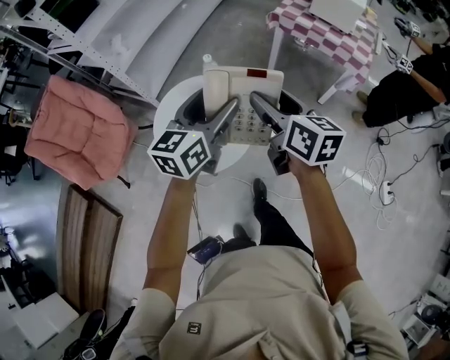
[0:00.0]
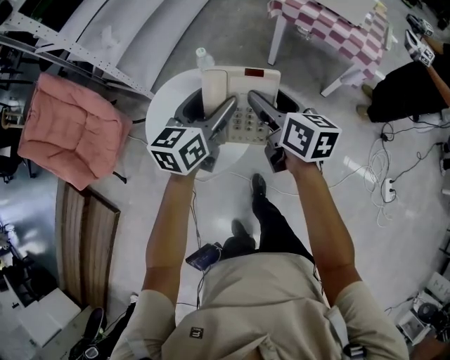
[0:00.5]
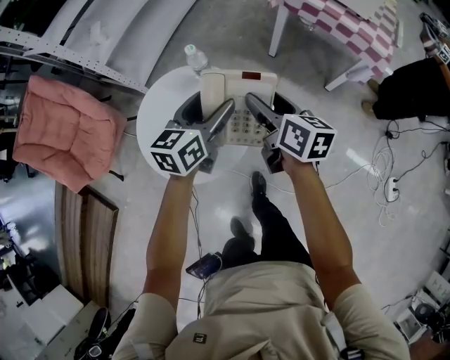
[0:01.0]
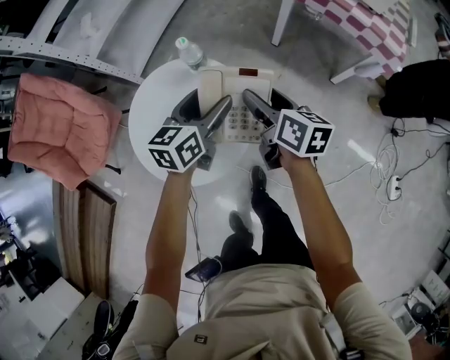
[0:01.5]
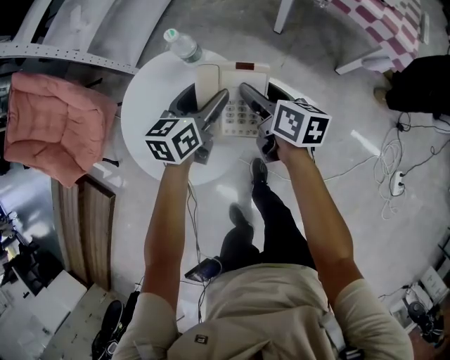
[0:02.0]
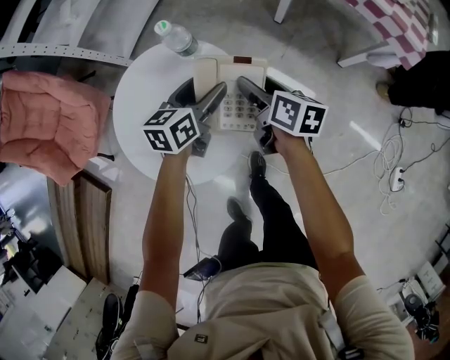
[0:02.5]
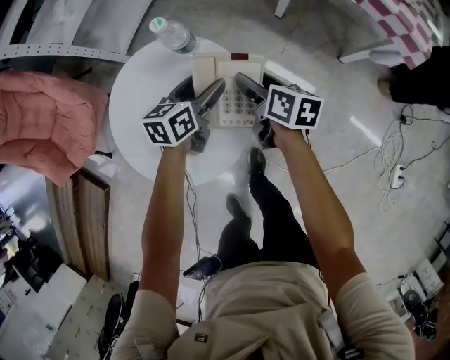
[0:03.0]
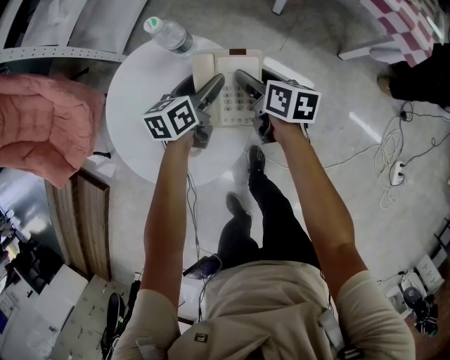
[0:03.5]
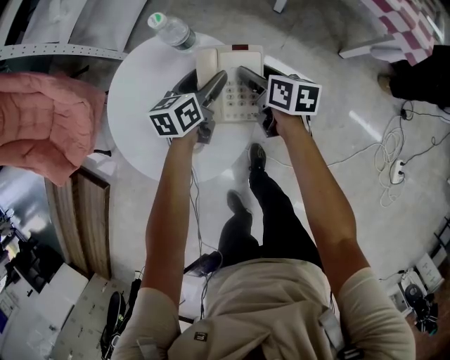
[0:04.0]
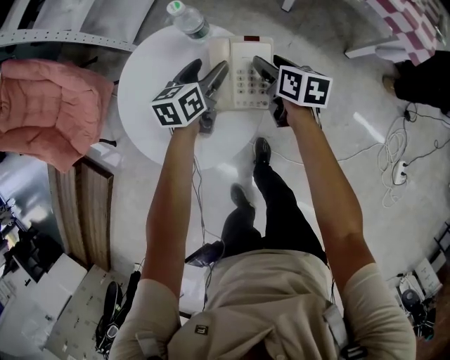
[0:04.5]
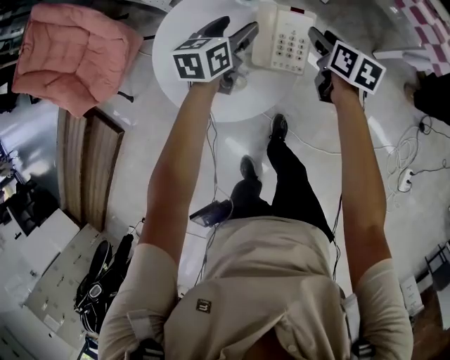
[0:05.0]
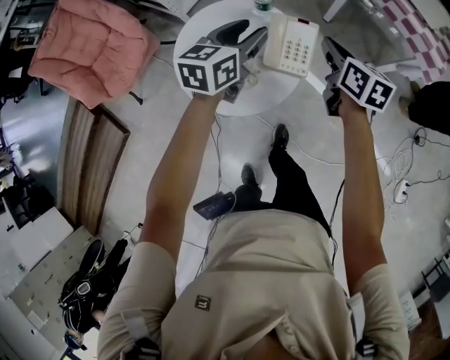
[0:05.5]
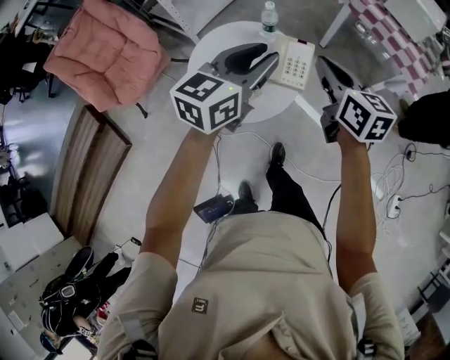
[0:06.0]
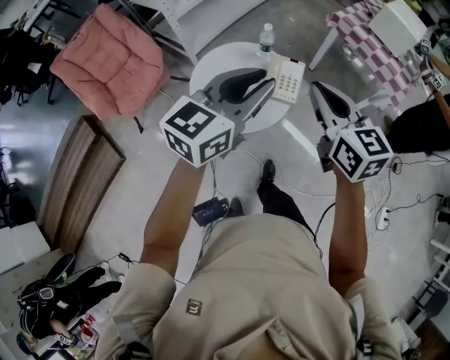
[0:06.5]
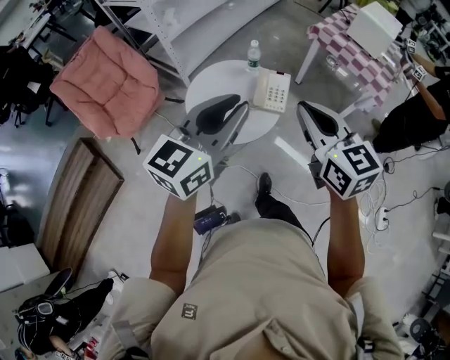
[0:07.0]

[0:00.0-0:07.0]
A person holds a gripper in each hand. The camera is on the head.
0:00.0 to 0:02.0: Both grippers travel together downward and forward, roughly 35 cm. The right gripper changes its angle by about 20 degrees; the left gripper rotates some 20 degrees.
0:02.0 to 0:03.5: The grippers both shift downward by roughly 10 cm.
0:03.5 to 0:05.0: The left gripper moves upward and to the left, approximately 15 cm, while the right gripper travels upward by roughly 10 cm.
0:05.0 to 0:07.0: Both grippers move upward and backward, approximately 50 cm. The right gripper swivels approximately 40 degrees, and closes up, while the left gripper points its fingers about 30 degrees further upward, and closes its fingers.

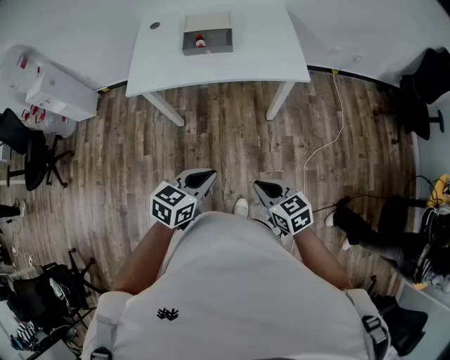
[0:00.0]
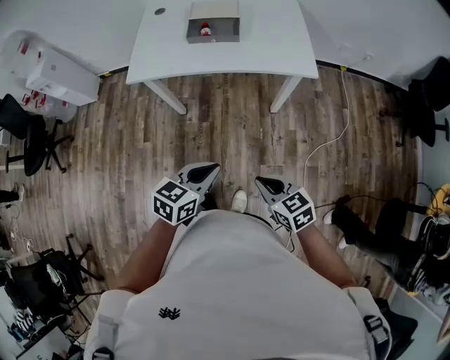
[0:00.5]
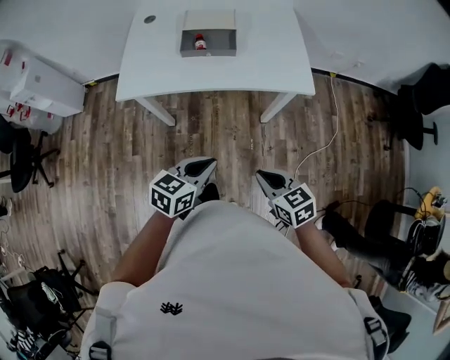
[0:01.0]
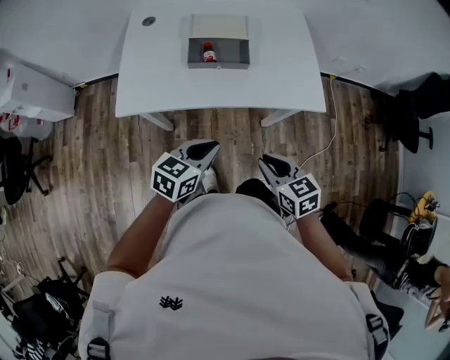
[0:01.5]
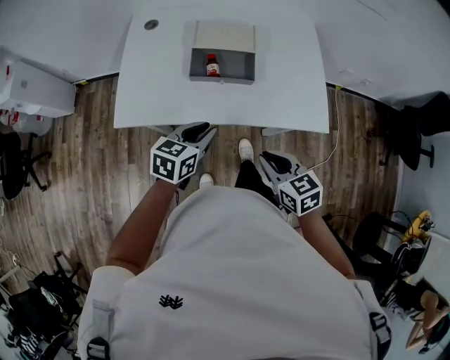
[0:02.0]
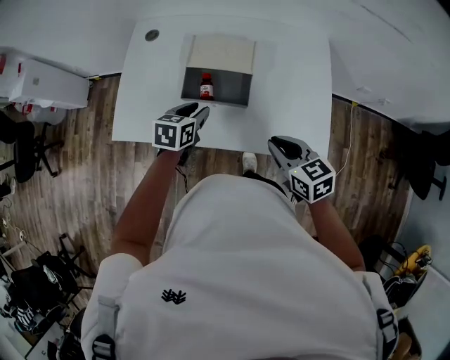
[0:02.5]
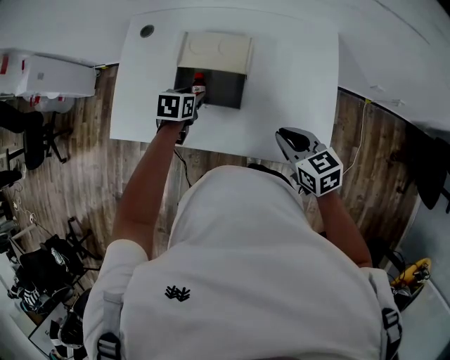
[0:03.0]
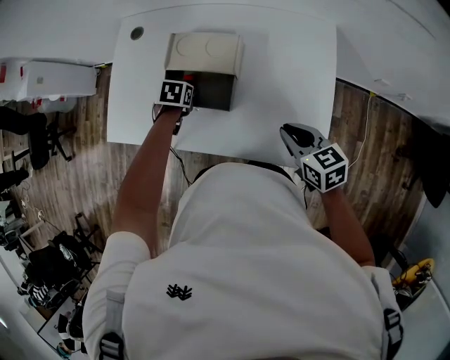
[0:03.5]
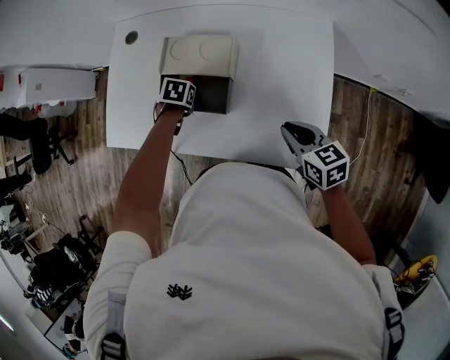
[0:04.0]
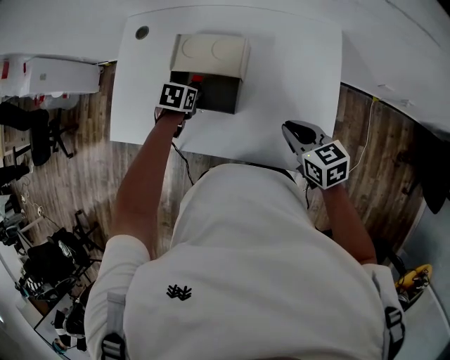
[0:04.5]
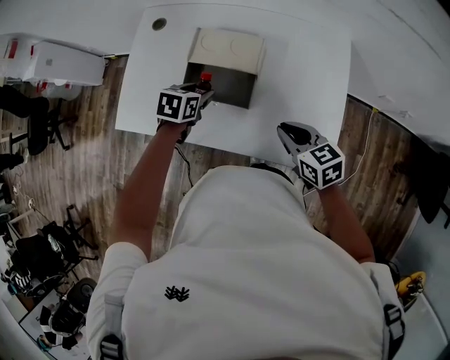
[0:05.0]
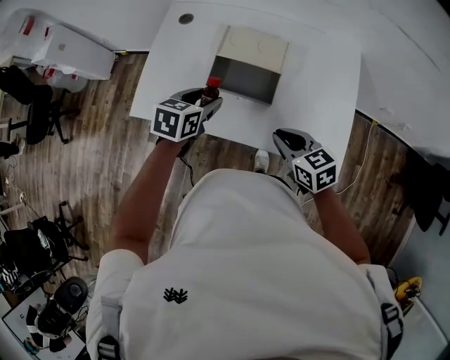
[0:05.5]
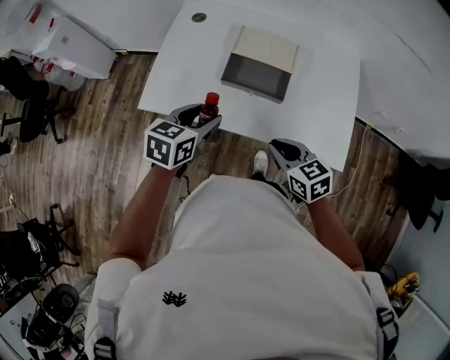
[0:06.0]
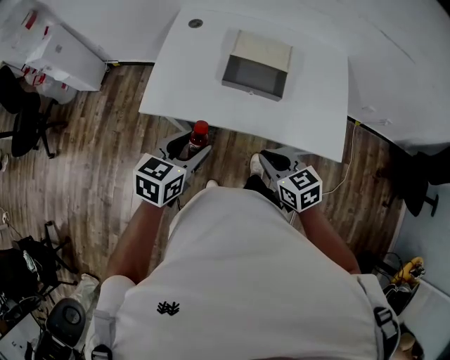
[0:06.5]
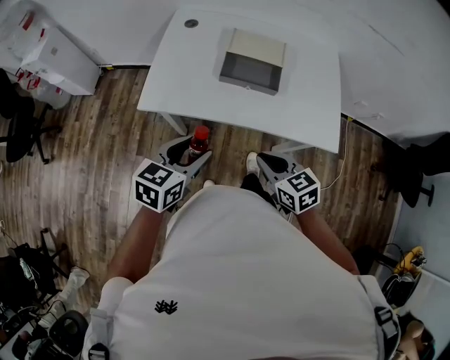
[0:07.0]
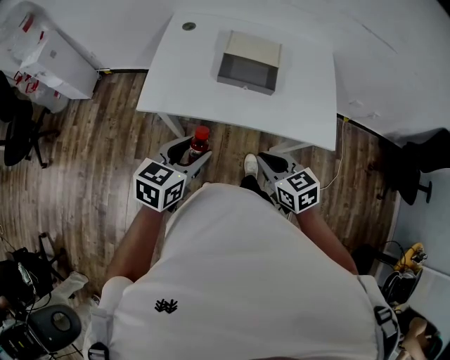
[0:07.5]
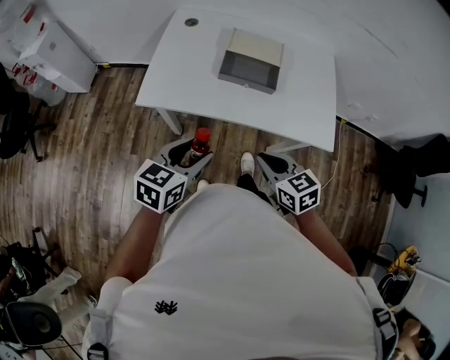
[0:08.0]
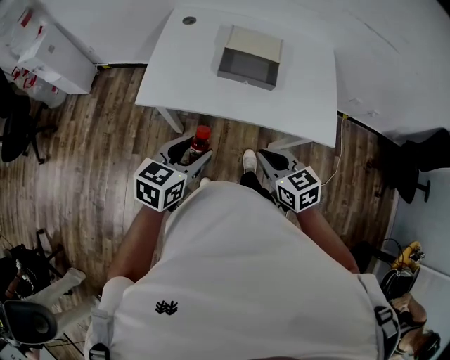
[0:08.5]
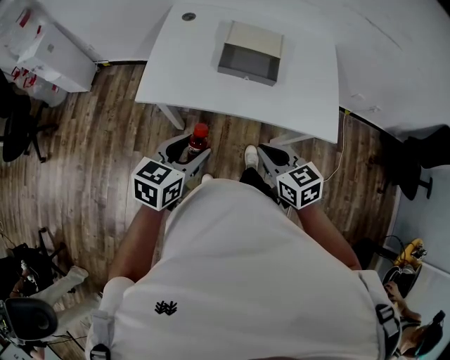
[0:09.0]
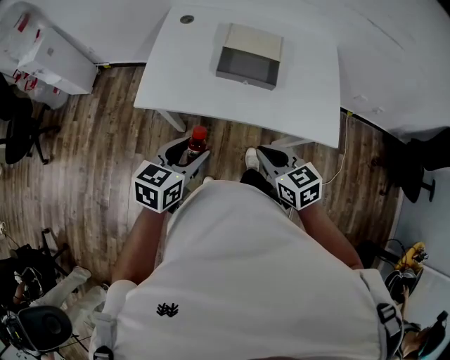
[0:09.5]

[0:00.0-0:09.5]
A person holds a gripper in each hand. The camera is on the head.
0:00.0 to 0:02.0: The grippers both shift forward by about 30 cm.
0:02.0 to 0:04.0: The left gripper shifts by approximately 30 cm, points its fingers approximately 50 degrees further downward, and opens its fingers; the right gripper shifts by approximately 25 cm.
0:04.0 to 0:05.5: The right gripper changes place by about 15 cm. Meanwhile the left gripper shifts roughly 15 cm upward, and angles its fingers upward, by roughly 40 degrees.
0:05.5 to 0:07.5: Both grippers move backward and to the left, roughly 20 cm.
0:07.5 to 0:09.5: The grippers stay close to where they were, moving slightly.

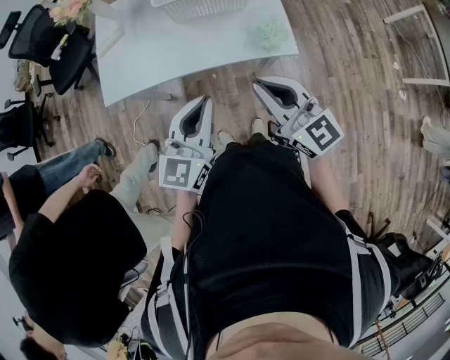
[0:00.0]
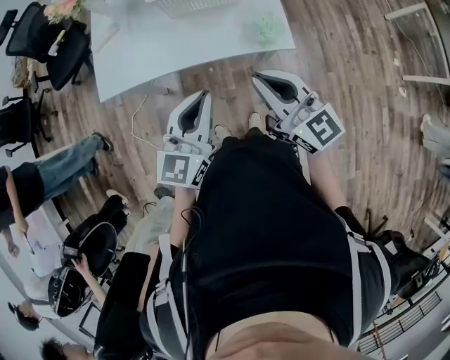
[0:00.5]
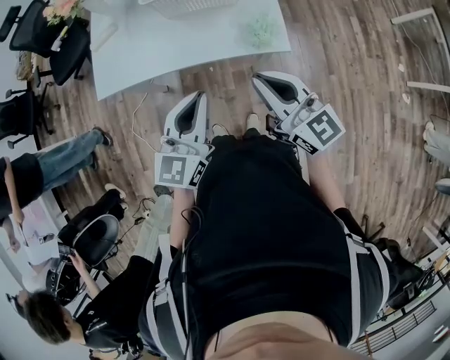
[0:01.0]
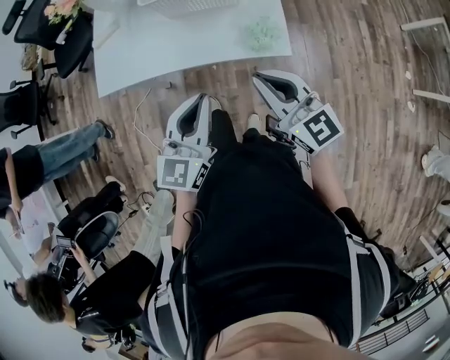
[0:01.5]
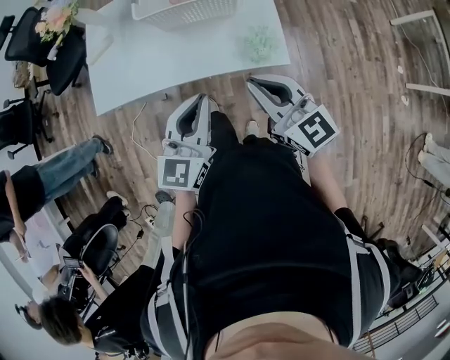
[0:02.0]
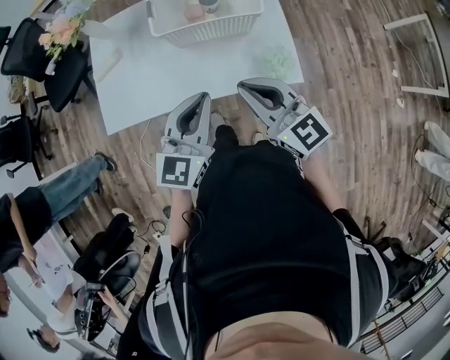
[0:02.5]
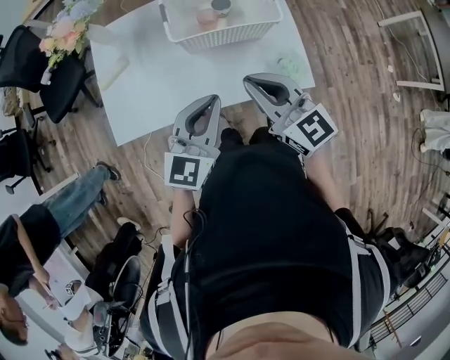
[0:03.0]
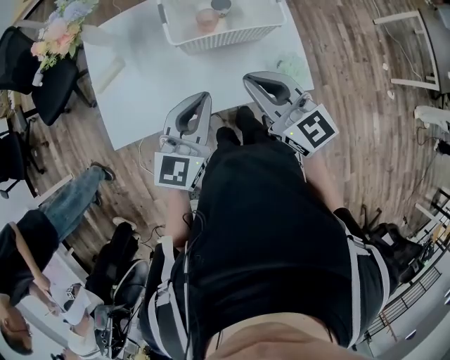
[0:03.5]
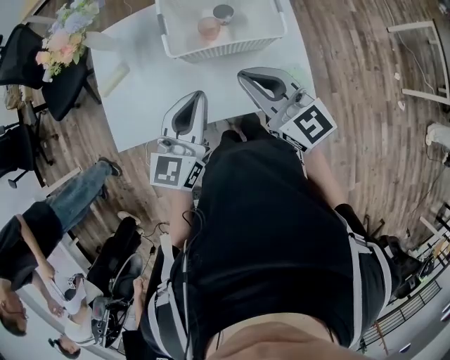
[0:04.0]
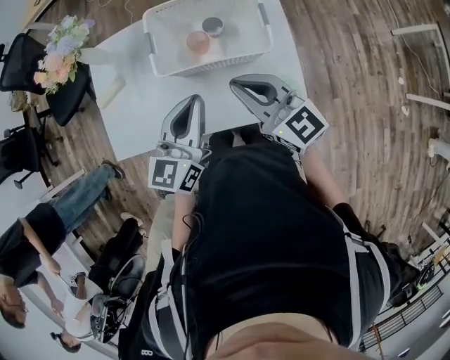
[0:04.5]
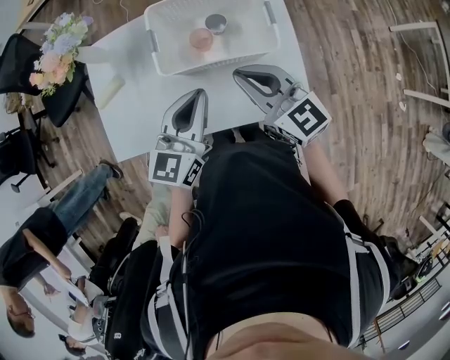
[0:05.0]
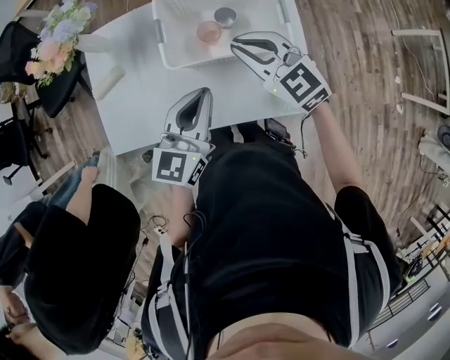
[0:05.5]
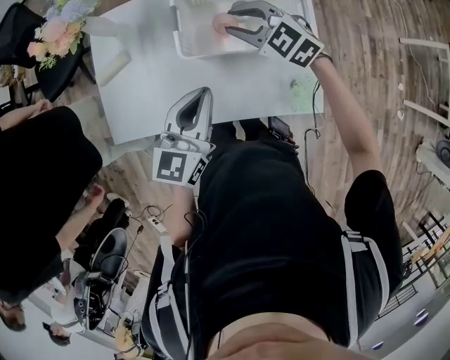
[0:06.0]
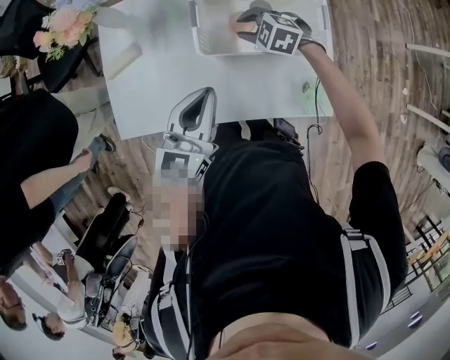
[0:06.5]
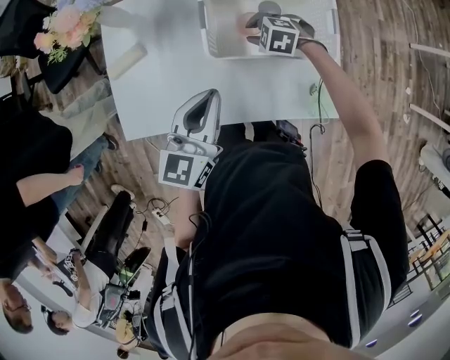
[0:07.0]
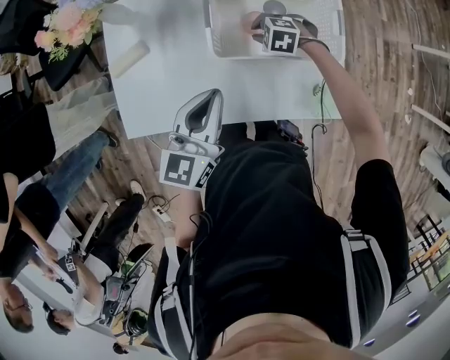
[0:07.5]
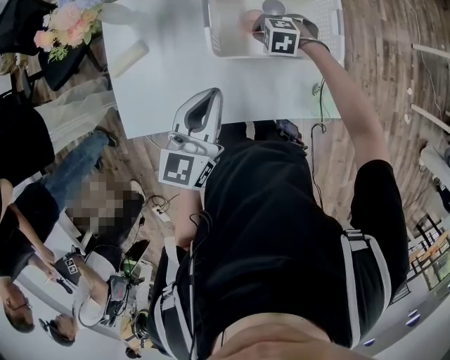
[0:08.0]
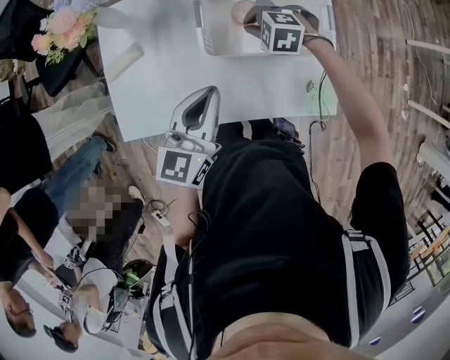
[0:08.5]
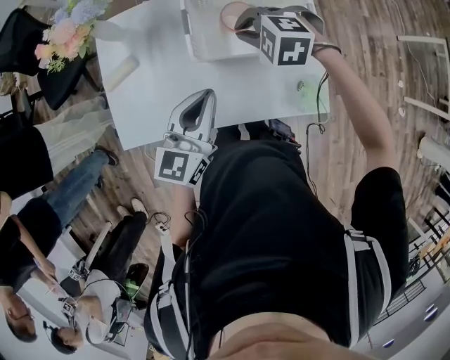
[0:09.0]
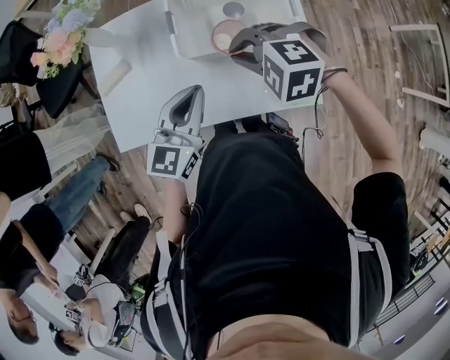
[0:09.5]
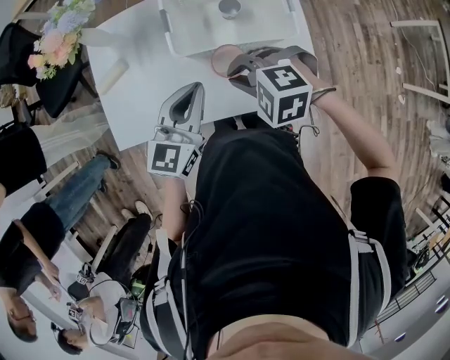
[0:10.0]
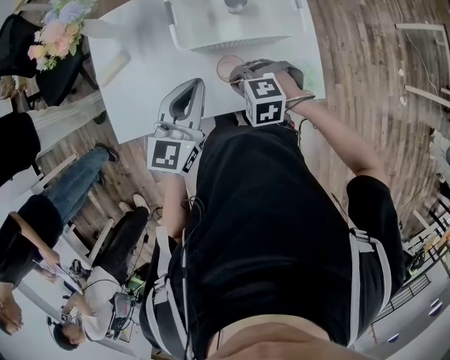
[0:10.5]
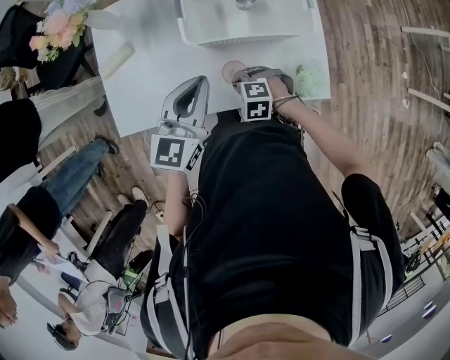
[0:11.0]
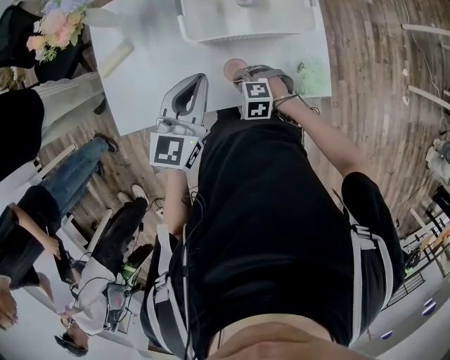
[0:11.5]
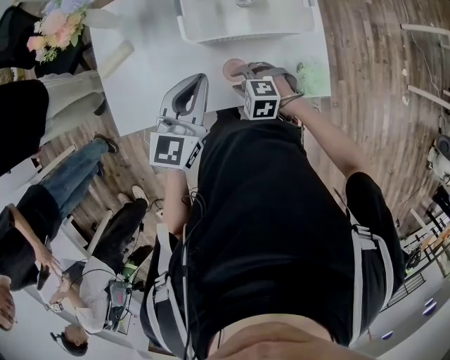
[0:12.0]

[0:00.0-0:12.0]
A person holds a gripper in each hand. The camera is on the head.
0:00.0 to 0:02.0: The right gripper shifts roughly 10 cm forward and to the right. The left gripper heads to the right and forward, covering approximately 10 cm.
0:02.0 to 0:04.0: Both grippers move forward and to the left, roughly 25 cm.
0:04.0 to 0:06.0: The right gripper heads forward and downward, covering roughly 20 cm, swivels about 40 degrees, and opens its fingers, while the left gripper is displaced forward by about 5 cm.
0:06.0 to 0:08.0: The right gripper heads downward, covering approximately 20 cm, angles its fingers downward, by roughly 30 degrees, and closes up. Meanwhile the left gripper ends up some 5 cm from where it was.
0:08.0 to 0:10.0: The right gripper moves upward and backward, approximately 25 cm, while the left gripper shifts by approximately 5 cm.
0:10.0 to 0:12.0: The right gripper is displaced downward by about 20 cm, and opens up.
